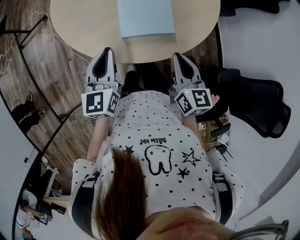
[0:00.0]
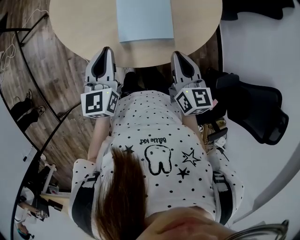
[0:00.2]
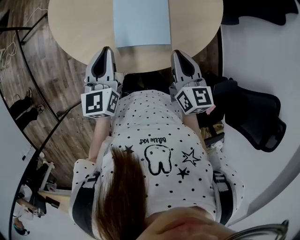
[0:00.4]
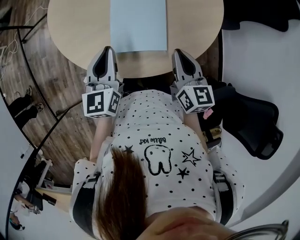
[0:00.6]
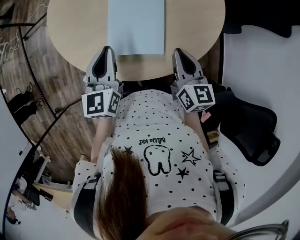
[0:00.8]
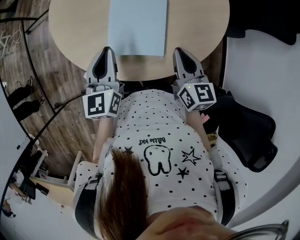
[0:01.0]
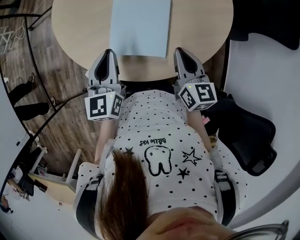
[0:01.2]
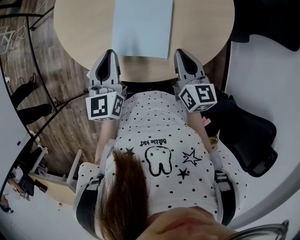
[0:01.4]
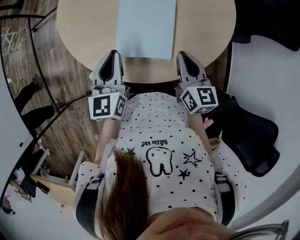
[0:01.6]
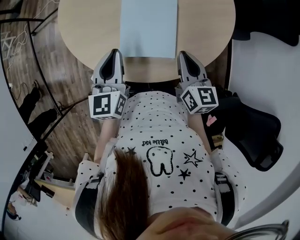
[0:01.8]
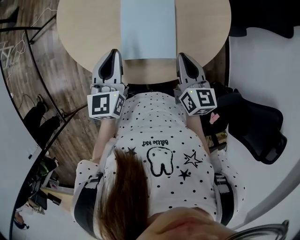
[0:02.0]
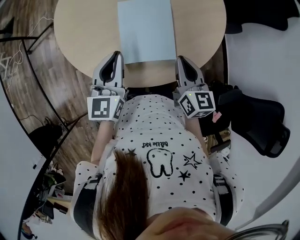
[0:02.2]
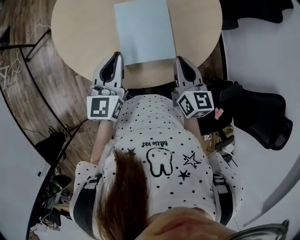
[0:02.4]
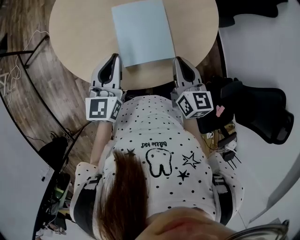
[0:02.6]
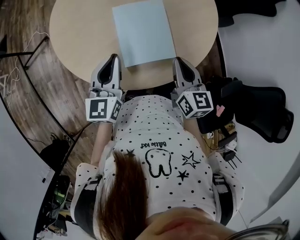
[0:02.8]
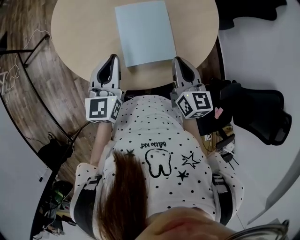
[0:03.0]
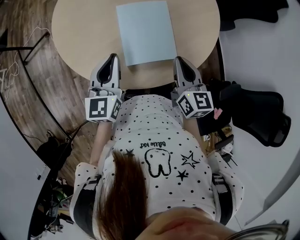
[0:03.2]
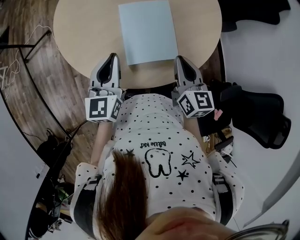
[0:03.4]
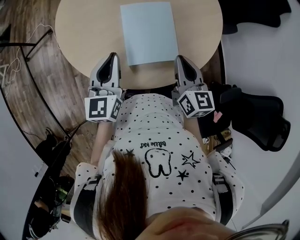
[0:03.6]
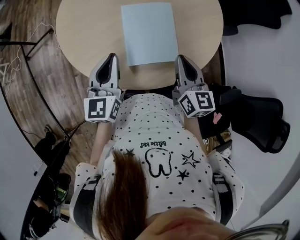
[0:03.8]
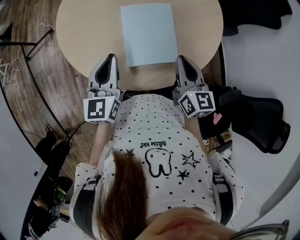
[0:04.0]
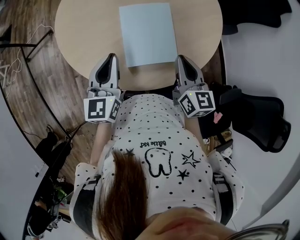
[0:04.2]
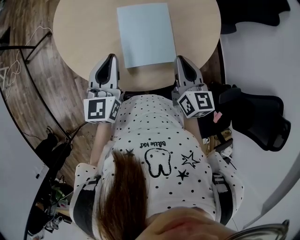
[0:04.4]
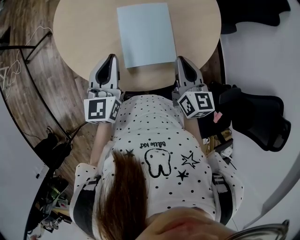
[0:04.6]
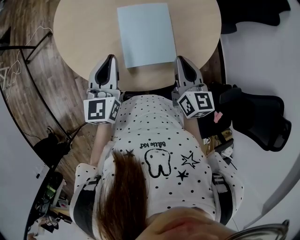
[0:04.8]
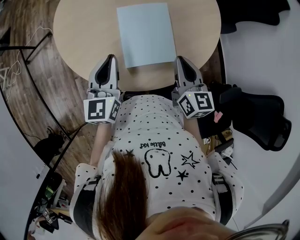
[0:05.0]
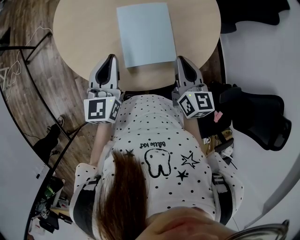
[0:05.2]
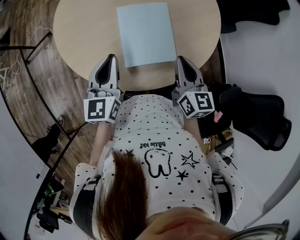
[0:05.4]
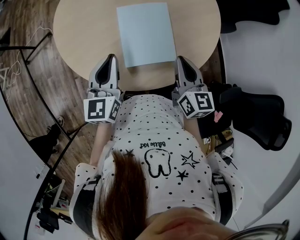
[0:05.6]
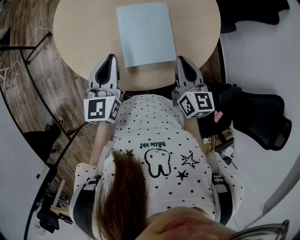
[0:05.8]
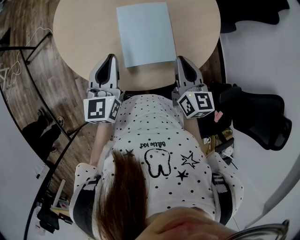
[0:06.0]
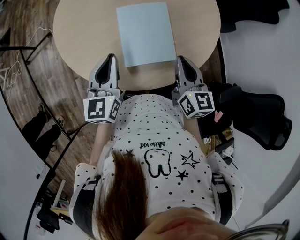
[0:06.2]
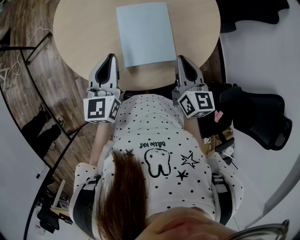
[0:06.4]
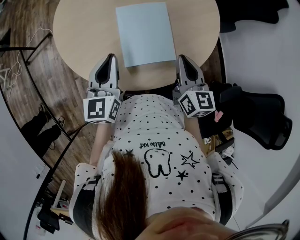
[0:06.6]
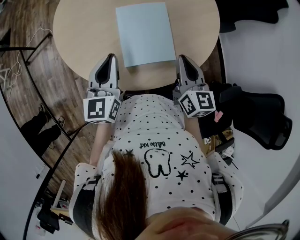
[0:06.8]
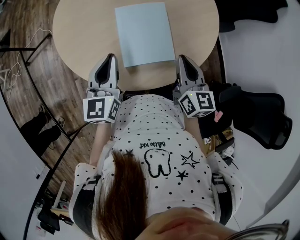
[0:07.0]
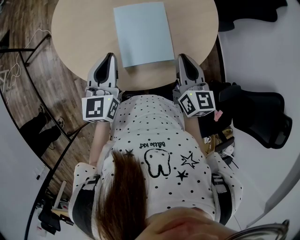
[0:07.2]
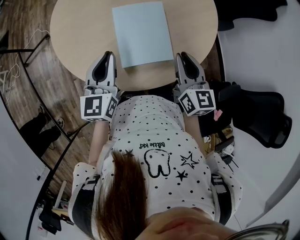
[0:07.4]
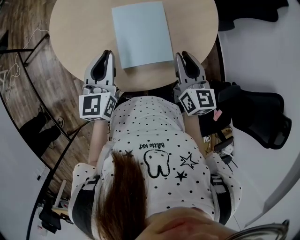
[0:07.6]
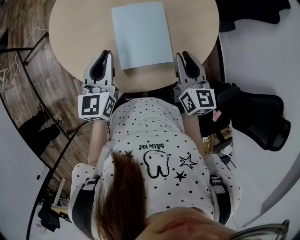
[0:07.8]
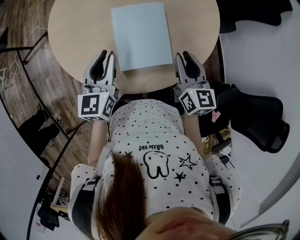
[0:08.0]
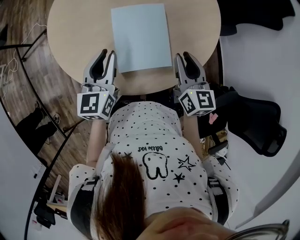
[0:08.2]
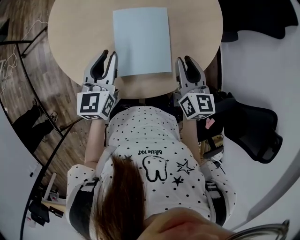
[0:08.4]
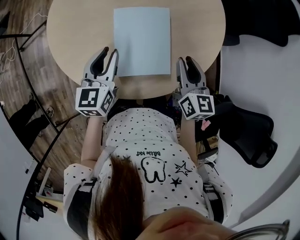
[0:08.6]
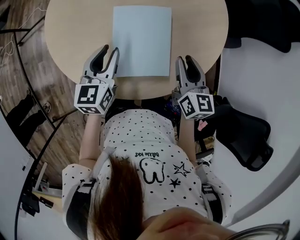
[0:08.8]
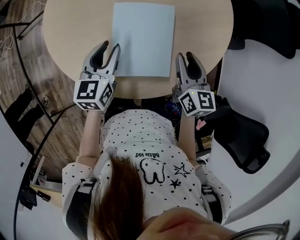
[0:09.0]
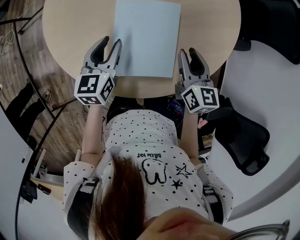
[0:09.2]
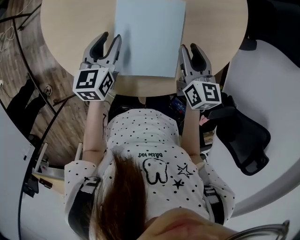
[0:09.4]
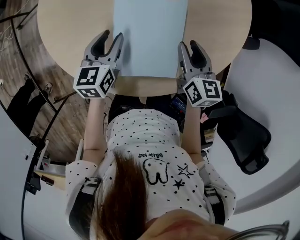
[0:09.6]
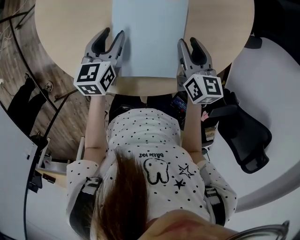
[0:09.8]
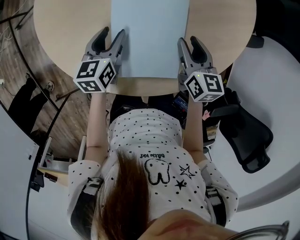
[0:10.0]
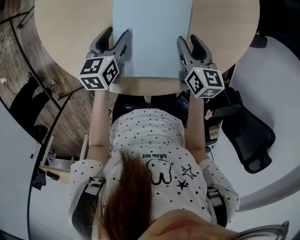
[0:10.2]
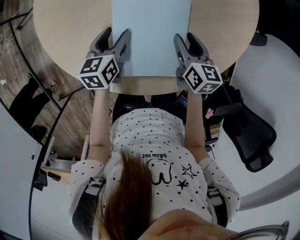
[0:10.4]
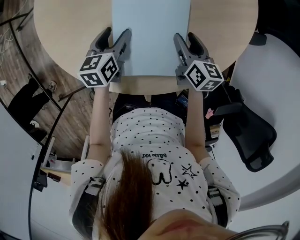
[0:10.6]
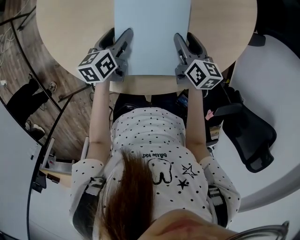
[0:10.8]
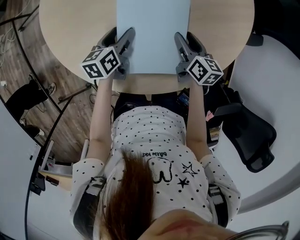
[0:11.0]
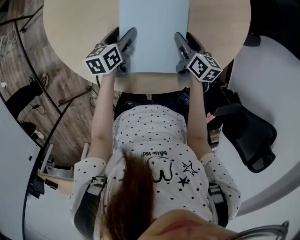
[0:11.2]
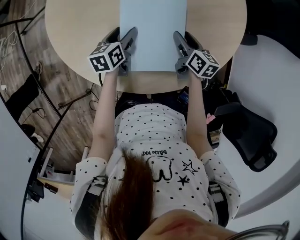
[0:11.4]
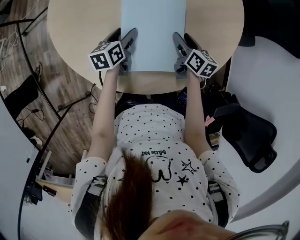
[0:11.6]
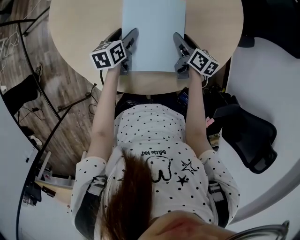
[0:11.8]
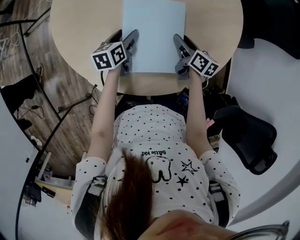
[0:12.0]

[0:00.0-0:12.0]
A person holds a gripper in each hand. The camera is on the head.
0:00.0 to 0:01.6: The grippers both shift forward and to the right by about 10 cm.
0:01.6 to 0:03.0: The left gripper rotates some 20 degrees. Meanwhile the right gripper shifts by about 5 cm.
0:03.0 to 0:04.4: The grippers stay close to where they were, moving slightly.
0:04.4 to 0:06.0: Both grippers stay about where they are.
0:06.0 to 0:07.6: The grippers stay close to where they were, moving slightly.
0:07.6 to 0:09.0: The right gripper moves forward and downward, some 10 cm; the left gripper shifts roughly 10 cm downward and forward, and opens.
0:09.0 to 0:10.4: The left gripper is displaced downward by approximately 10 cm, and opens; the right gripper travels downward and forward by roughly 15 cm.
0:10.4 to 0:12.0: There are only small adjustments of the grippers.

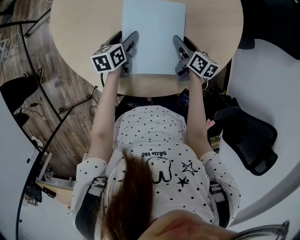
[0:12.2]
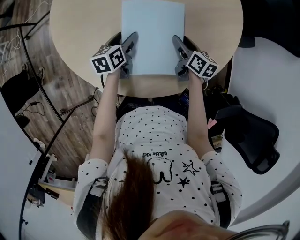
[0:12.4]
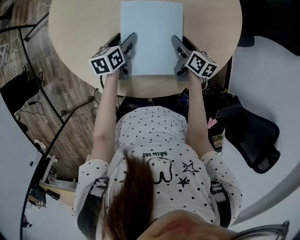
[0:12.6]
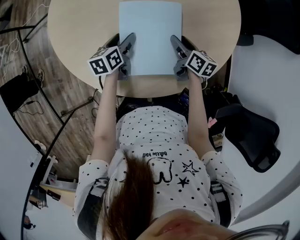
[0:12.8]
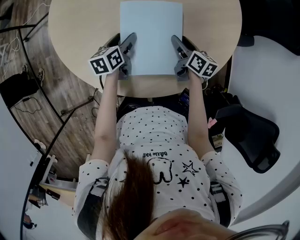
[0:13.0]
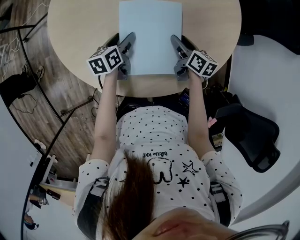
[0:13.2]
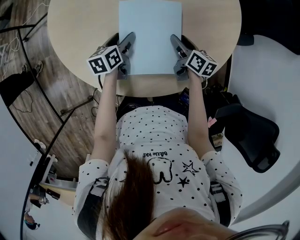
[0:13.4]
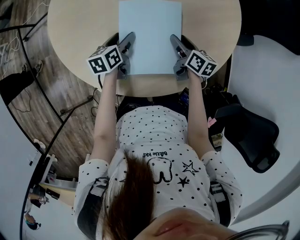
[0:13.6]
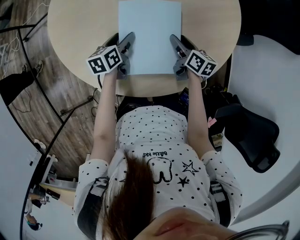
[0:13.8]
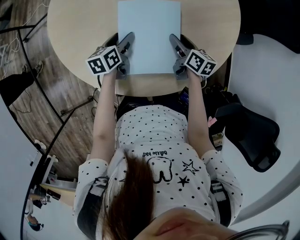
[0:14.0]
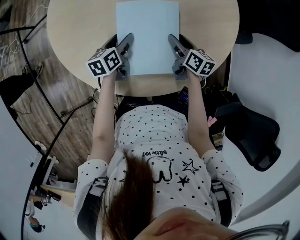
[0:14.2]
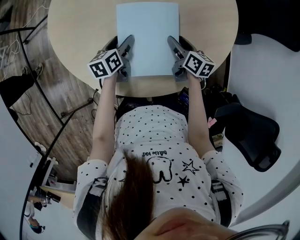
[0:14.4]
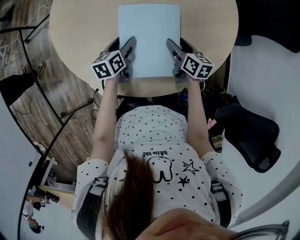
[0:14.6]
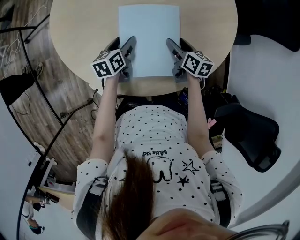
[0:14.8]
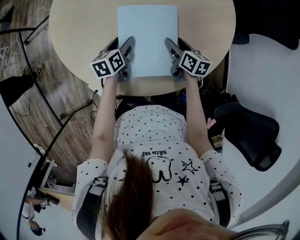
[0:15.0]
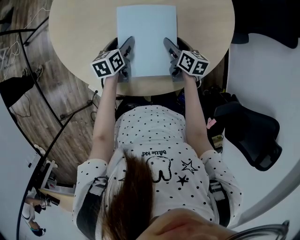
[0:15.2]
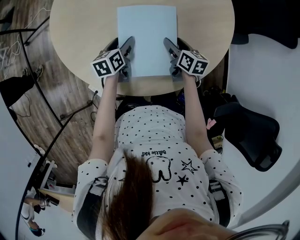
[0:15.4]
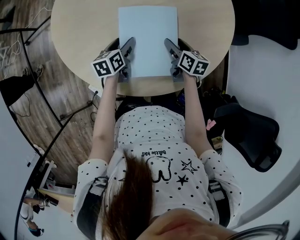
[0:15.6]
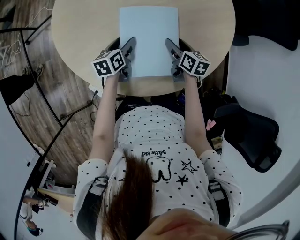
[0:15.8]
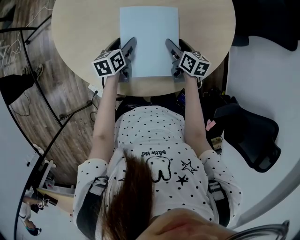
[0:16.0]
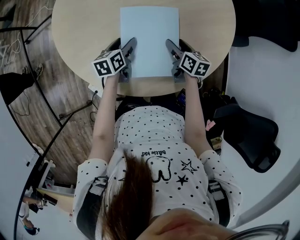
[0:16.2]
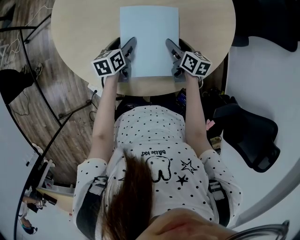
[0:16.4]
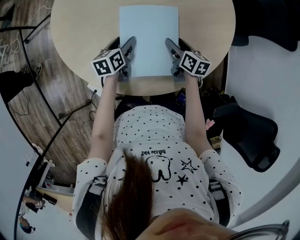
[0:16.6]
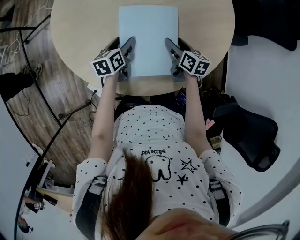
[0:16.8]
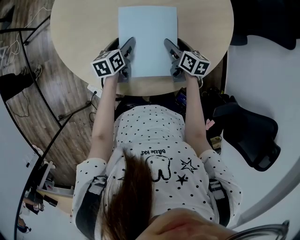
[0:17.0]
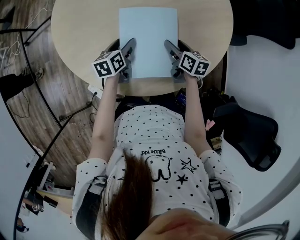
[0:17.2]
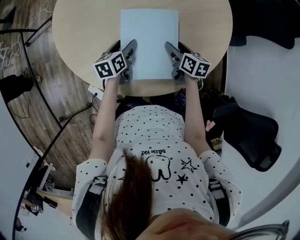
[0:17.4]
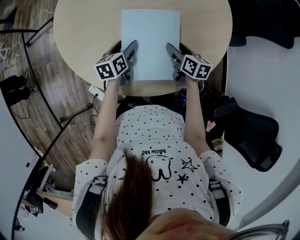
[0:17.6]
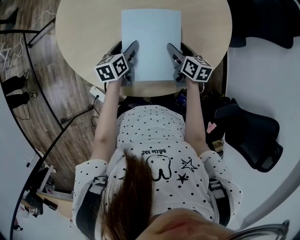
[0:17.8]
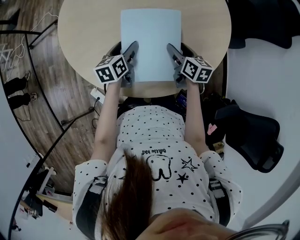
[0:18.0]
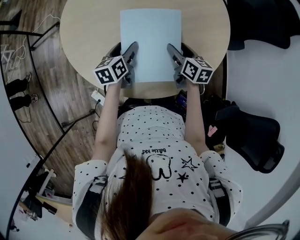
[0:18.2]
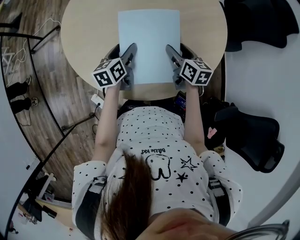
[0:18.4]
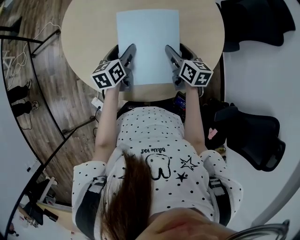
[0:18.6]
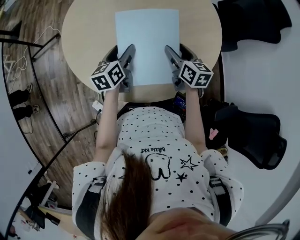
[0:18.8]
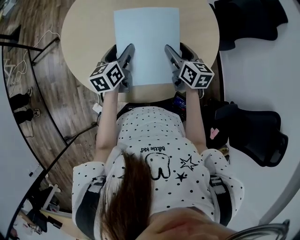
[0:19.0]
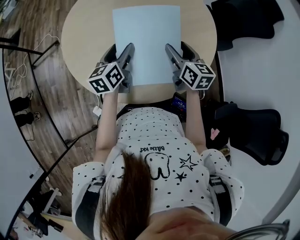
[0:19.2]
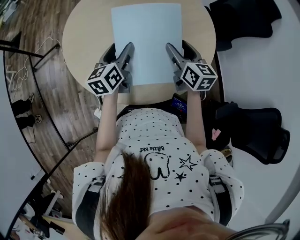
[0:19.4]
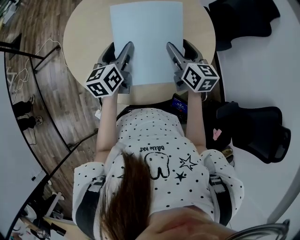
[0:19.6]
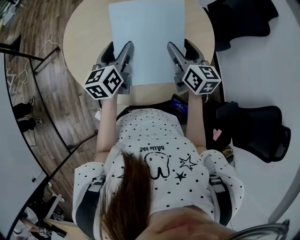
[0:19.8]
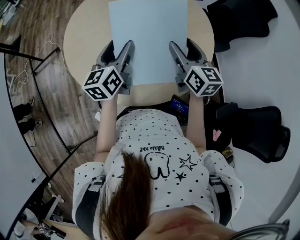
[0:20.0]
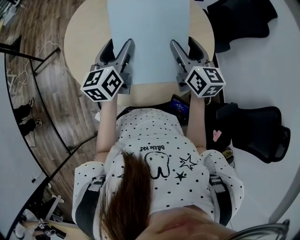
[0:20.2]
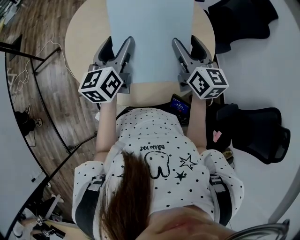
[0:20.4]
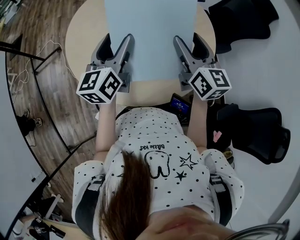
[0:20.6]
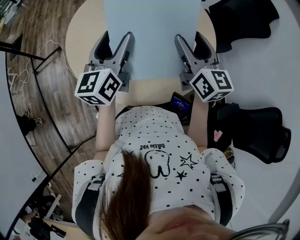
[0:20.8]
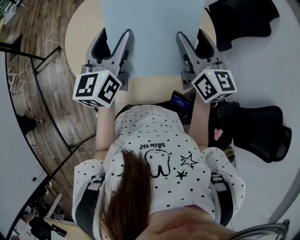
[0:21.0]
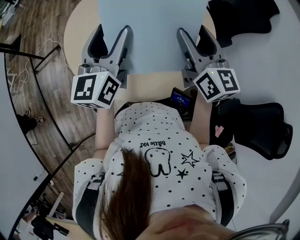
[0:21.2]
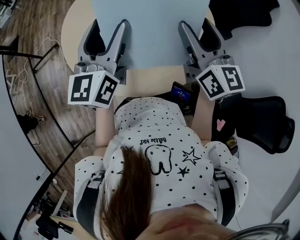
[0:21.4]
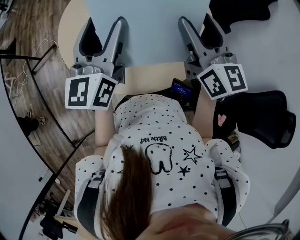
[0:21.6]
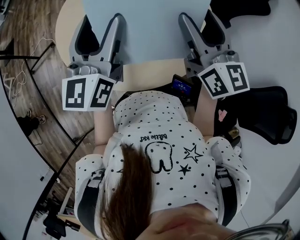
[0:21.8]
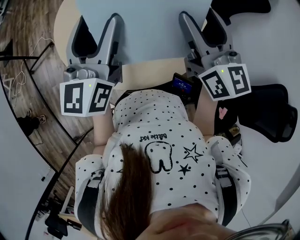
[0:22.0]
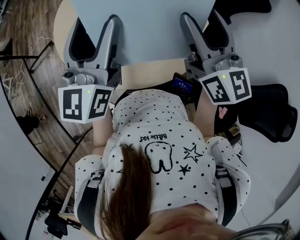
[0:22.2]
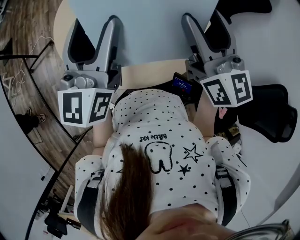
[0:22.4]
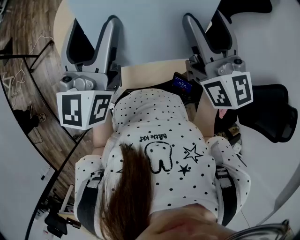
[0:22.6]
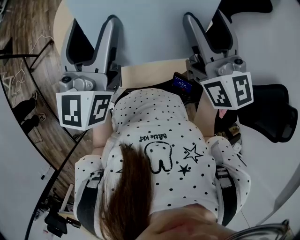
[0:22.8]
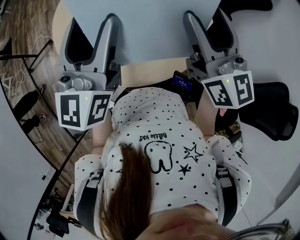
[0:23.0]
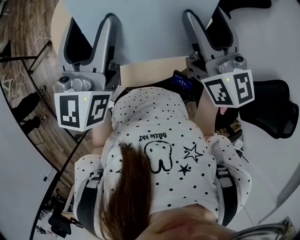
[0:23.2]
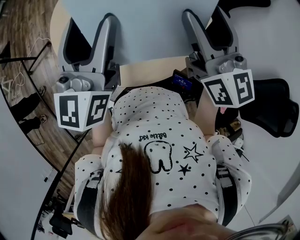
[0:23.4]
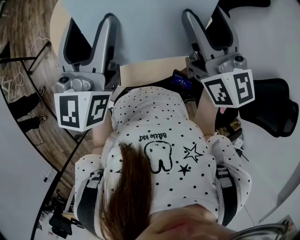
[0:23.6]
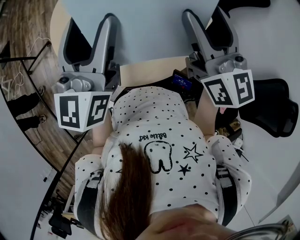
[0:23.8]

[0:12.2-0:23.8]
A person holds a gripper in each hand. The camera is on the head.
0:12.2 to 0:13.6: Both grippers stay put.
0:13.6 to 0:15.0: The grippers make only small movements.
0:15.0 to 0:16.6: Neither gripper changes place.
0:16.6 to 0:18.0: The right gripper travels upward by approximately 5 cm; the left gripper changes place by roughly 5 cm.
0:18.0 to 0:19.4: The two grippers go approximately 15 cm upward. The right gripper swivels roughly 20 degrees.
0:19.4 to 0:21.0: Both grippers move upward, some 15 cm. The left gripper rotates roughly 20 degrees.
0:21.0 to 0:22.4: The grippers both shift upward by some 5 cm.
0:22.4 to 0:23.8: The two grippers keep their place.
